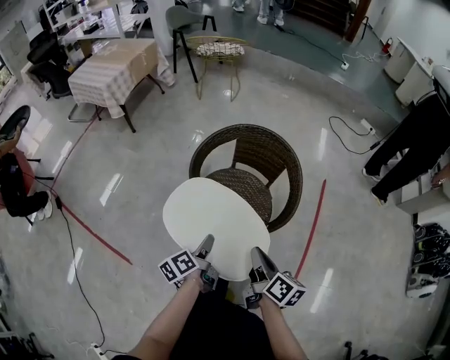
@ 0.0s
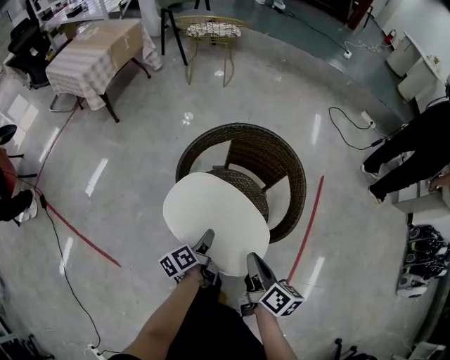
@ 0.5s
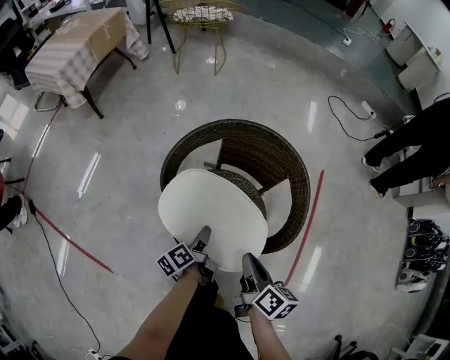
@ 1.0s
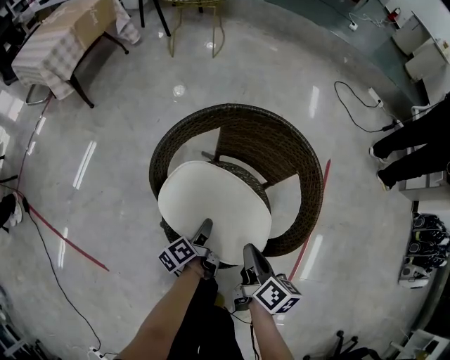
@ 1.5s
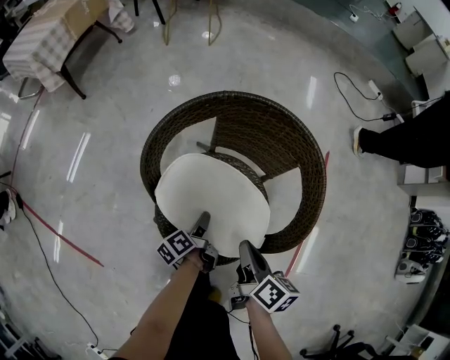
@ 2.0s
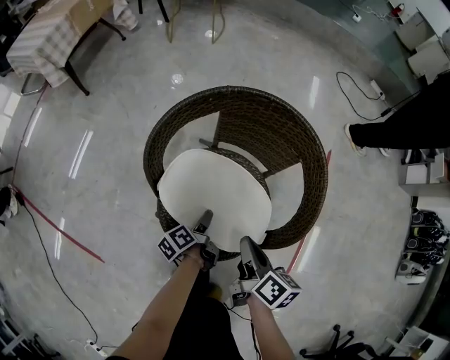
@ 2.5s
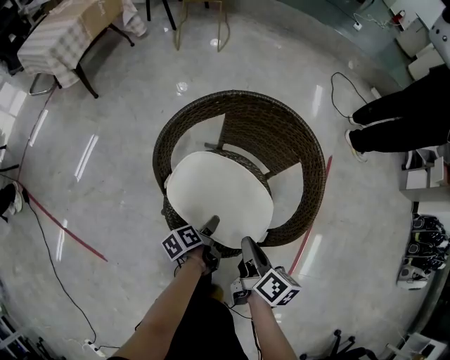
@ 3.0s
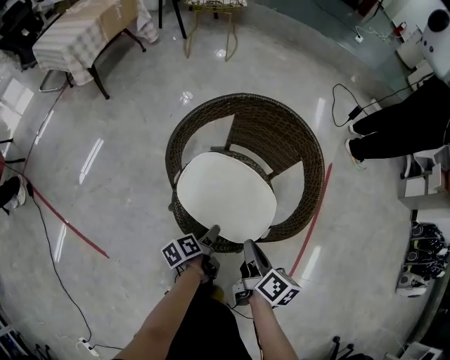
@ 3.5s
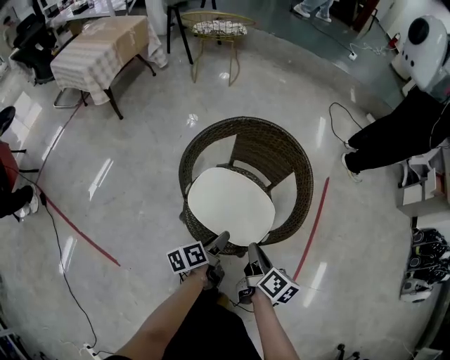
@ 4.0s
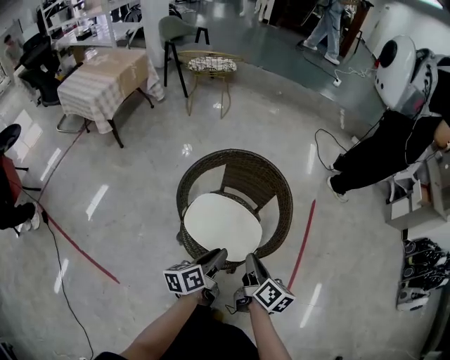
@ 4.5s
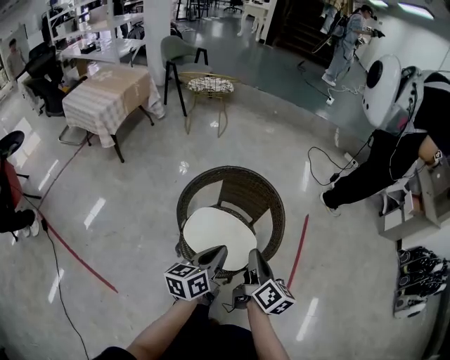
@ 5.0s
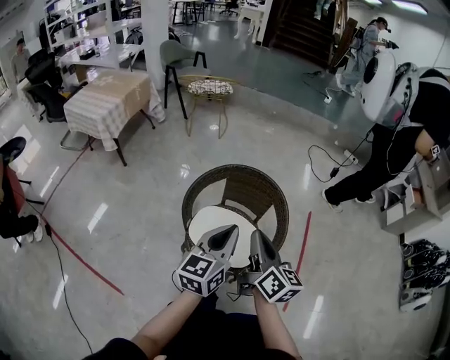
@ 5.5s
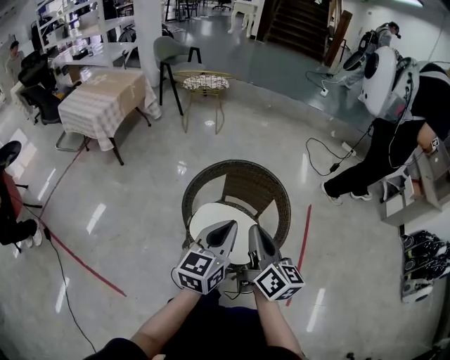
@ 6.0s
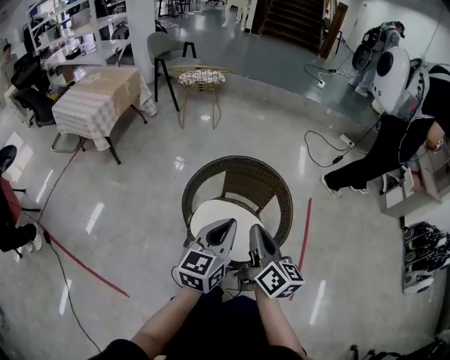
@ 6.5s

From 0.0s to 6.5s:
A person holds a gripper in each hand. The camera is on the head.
From 0.0s to 2.0s: Both grippers move downward and forward, roughly 25 cm.
From 2.0s to 4.5s: The left gripper travels upward by about 30 cm, rotates about 30 degrees, and opens, then closes again. The right gripper moves upward, about 15 cm.
From 4.5s to 6.5s: The grippers both shift upward by some 15 cm. The right gripper changes its angle by some 20 degrees. Meanwhile the left gripper rolls clockwise, seen from behind, by roughly 40 degrees, and closes its fingers.

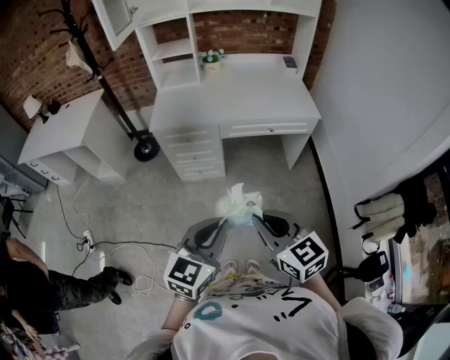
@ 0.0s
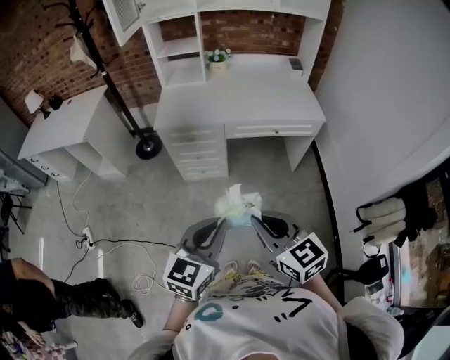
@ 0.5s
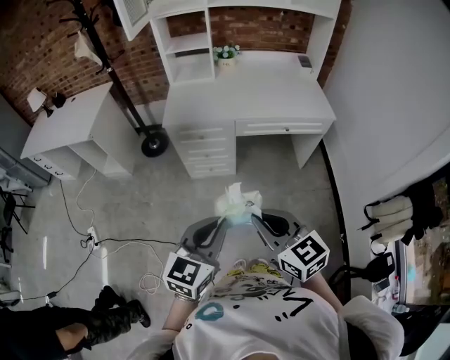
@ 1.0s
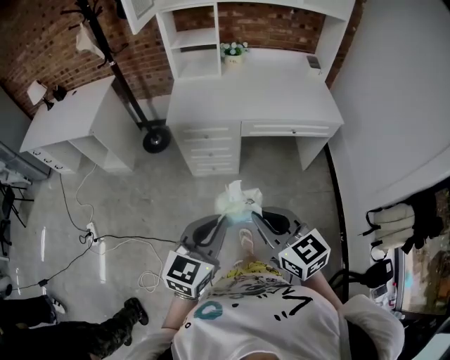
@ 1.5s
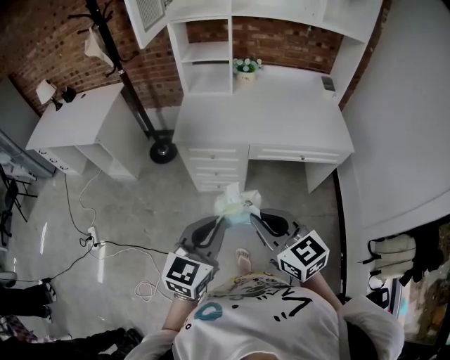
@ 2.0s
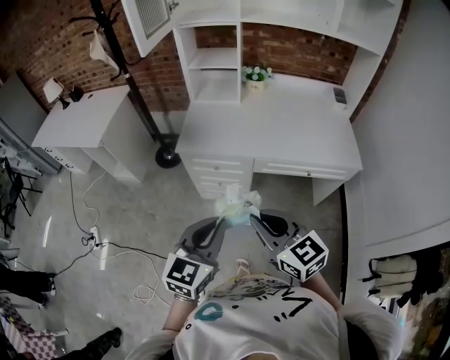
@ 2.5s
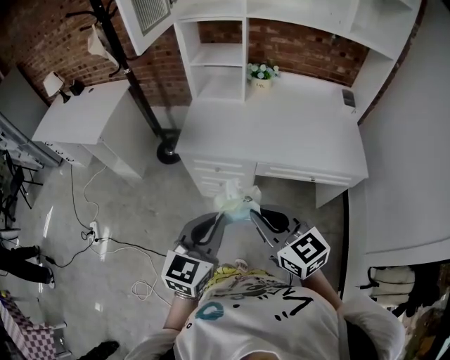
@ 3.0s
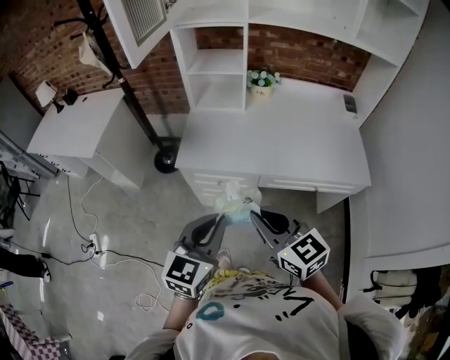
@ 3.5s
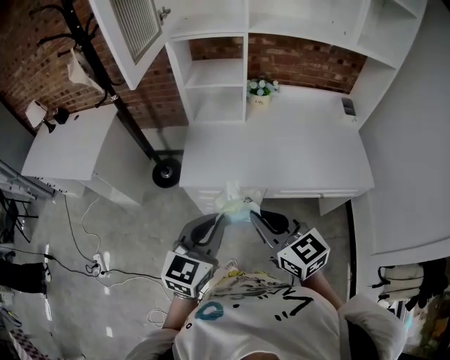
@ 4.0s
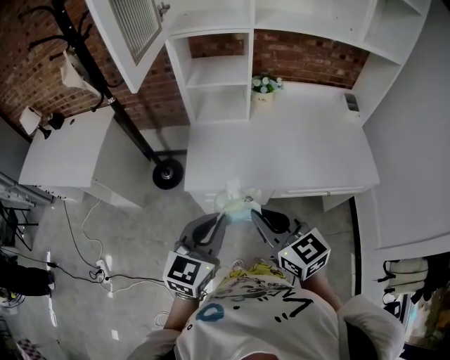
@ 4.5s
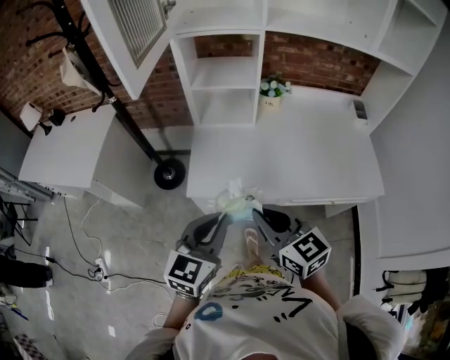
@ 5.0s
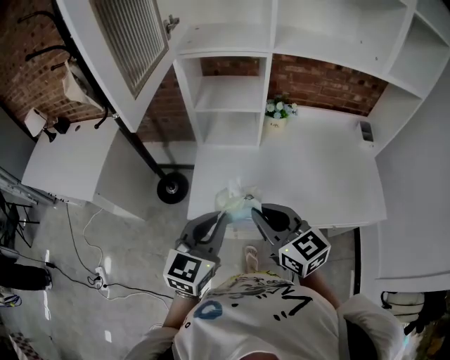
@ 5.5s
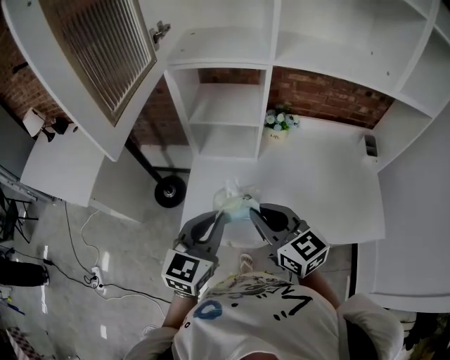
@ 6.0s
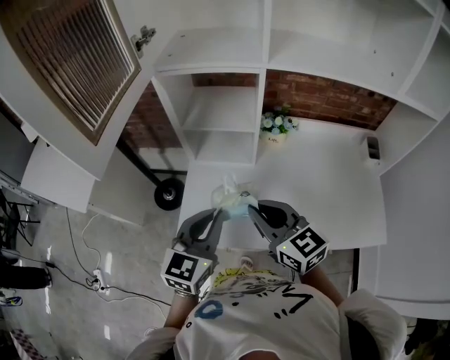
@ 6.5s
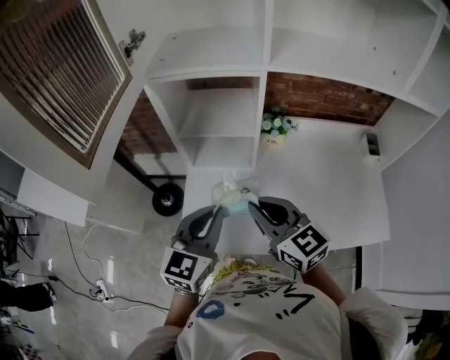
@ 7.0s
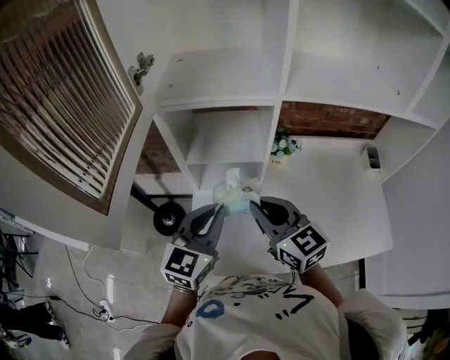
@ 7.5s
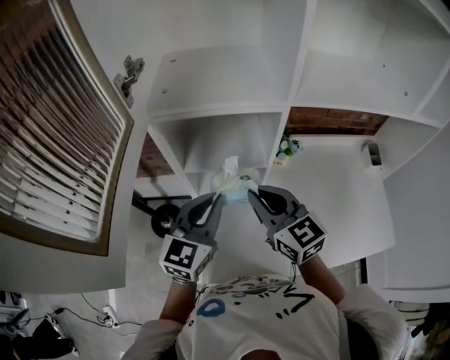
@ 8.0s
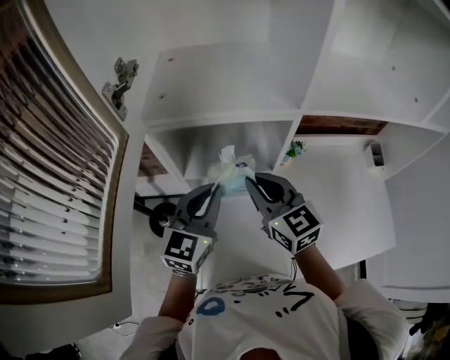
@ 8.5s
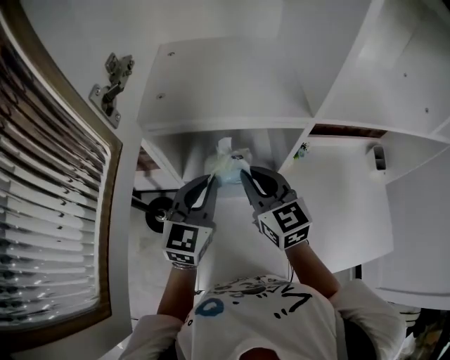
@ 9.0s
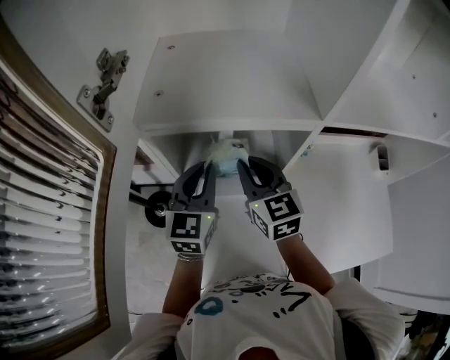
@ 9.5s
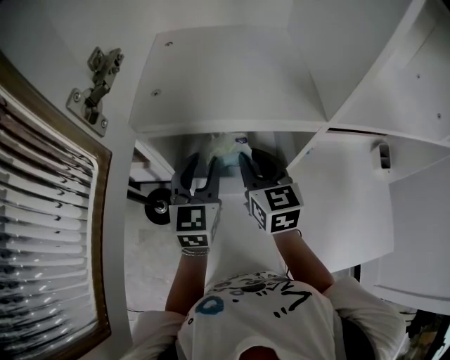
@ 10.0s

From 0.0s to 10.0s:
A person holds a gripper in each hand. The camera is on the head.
From 0.0s to 2.0s: The two grippers go approximately 20 cm forward and to the left.
From 2.0s to 4.0s: Both grippers move forward, approximately 25 cm.
From 4.0s to 6.0s: The two grippers go about 25 cm forward.
From 6.0s to 8.0s: The grippers both shift forward by approximately 20 cm.
From 8.0s to 10.0s: The grippers both shift forward by some 15 cm. The left gripper opens.

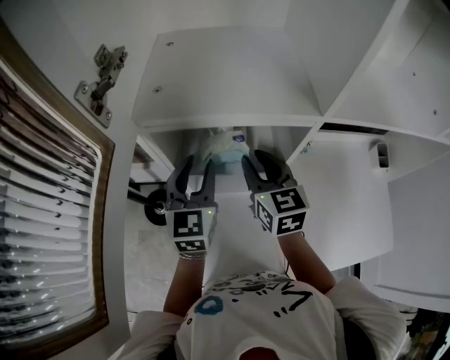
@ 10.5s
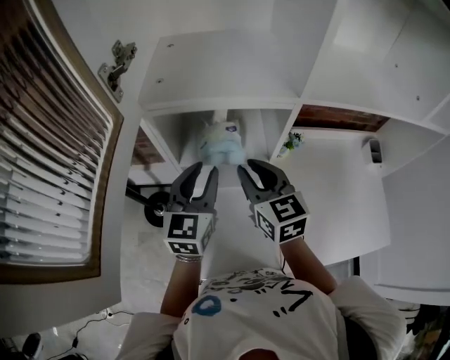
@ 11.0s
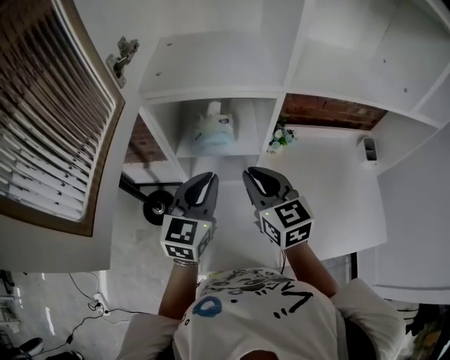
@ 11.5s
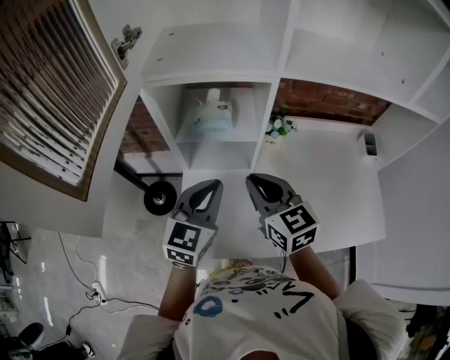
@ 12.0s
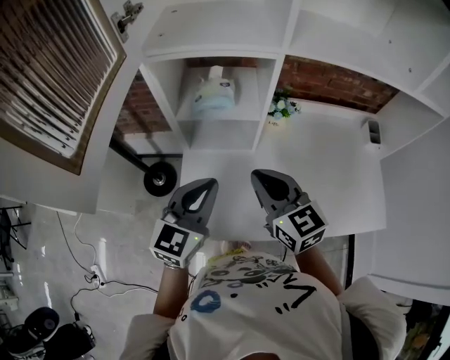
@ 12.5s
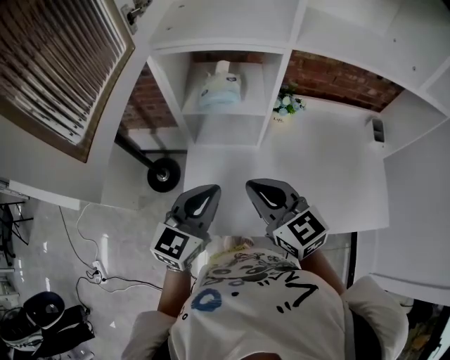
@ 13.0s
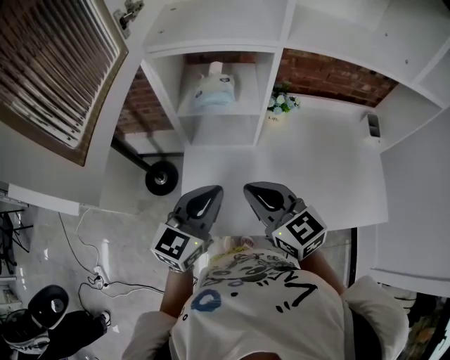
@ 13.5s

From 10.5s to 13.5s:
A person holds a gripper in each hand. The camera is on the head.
From 10.5s to 12.0s: Both grippers travel together backward, some 20 cm. The left gripper closes.
From 12.0s to 13.5s: The grippers both shift backward by approximately 10 cm.

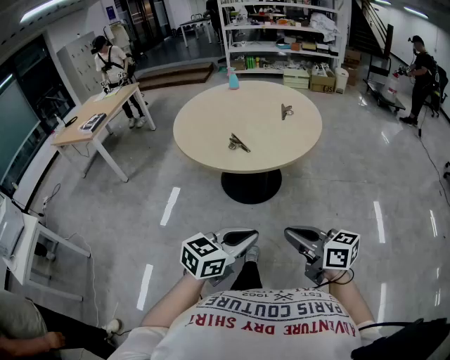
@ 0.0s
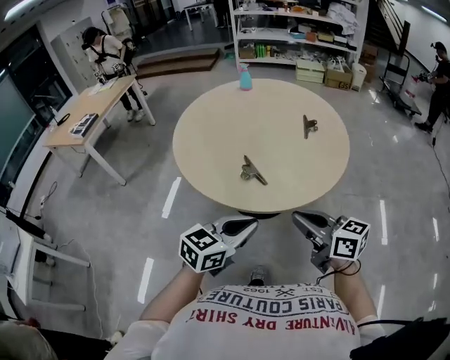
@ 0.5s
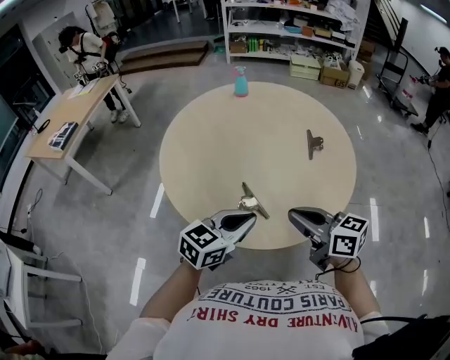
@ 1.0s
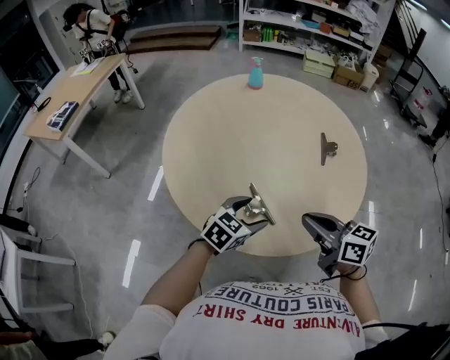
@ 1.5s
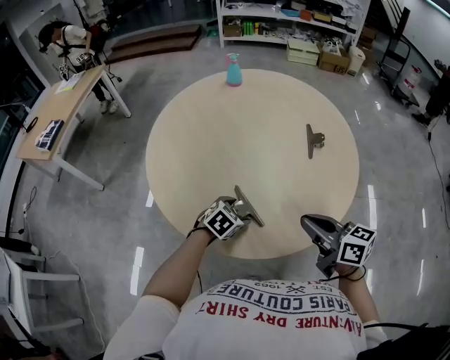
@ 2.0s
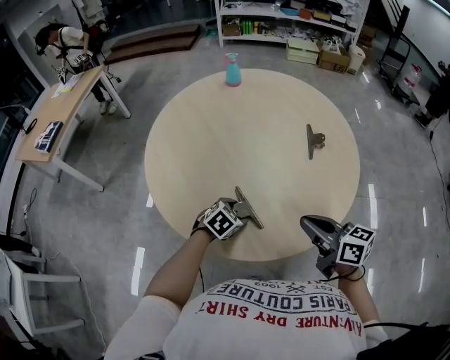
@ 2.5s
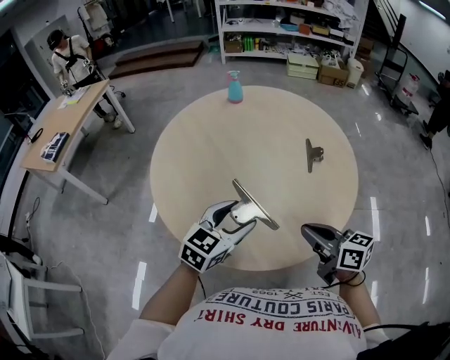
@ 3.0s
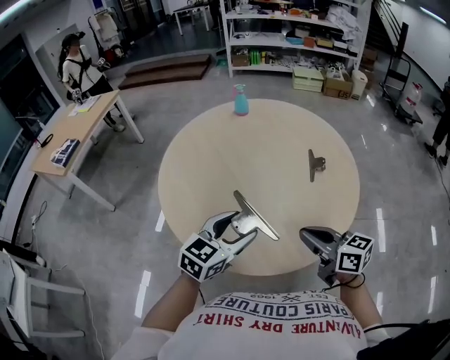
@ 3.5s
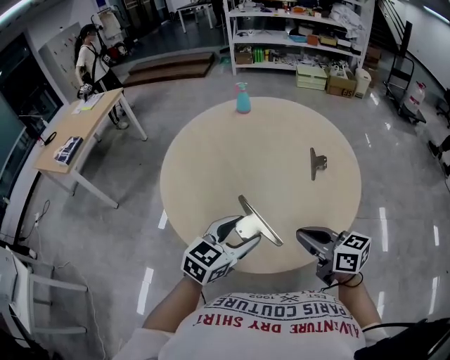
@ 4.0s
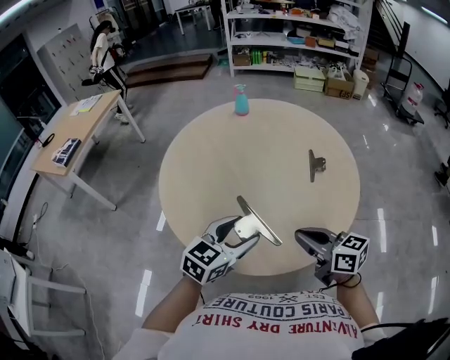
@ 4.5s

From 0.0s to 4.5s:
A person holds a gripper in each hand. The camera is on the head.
From 0.0s to 2.0s: Both grippers are carried forward, roughly 50 cm. The left gripper angles its fingers downward, by about 40 degrees, and opens.
From 2.0s to 4.5s: The left gripper heads upward, covering about 20 cm, and tilts its fingers some 30 degrees upward.

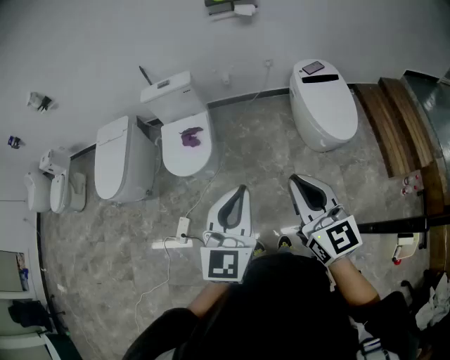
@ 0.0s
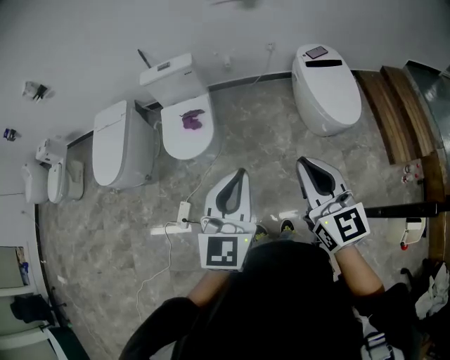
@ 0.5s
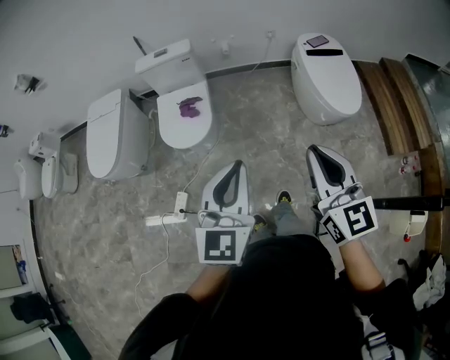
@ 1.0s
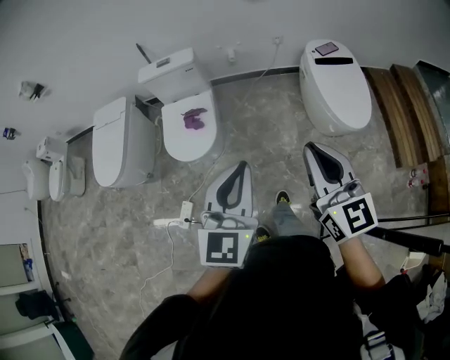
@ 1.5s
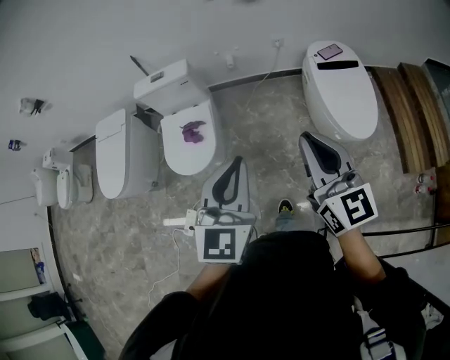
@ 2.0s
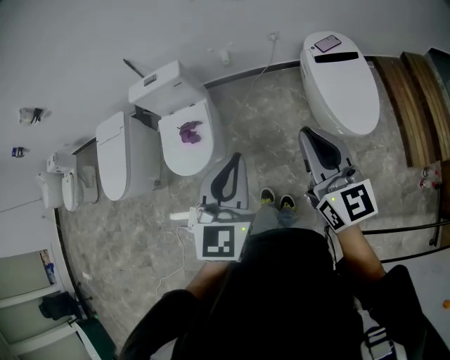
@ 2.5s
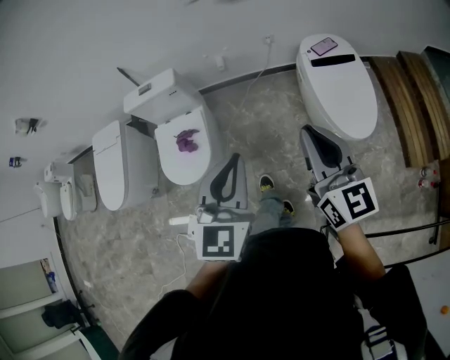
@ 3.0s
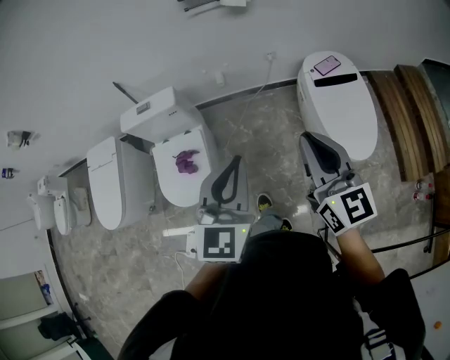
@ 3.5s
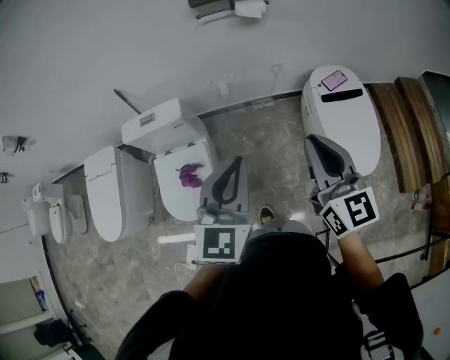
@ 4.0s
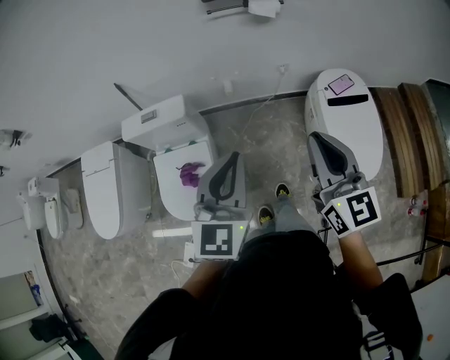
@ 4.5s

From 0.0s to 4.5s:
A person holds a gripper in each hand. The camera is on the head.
From 0.0s to 2.0s: Both grippers move forward, about 20 cm.
From 2.0s to 4.5s: Both grippers move forward, some 30 cm.
